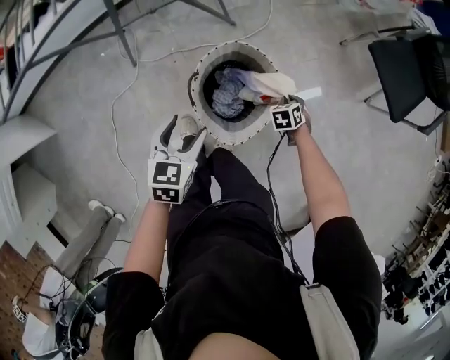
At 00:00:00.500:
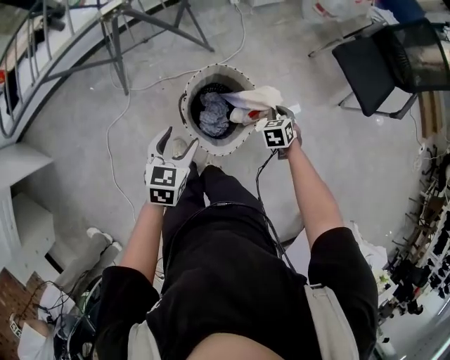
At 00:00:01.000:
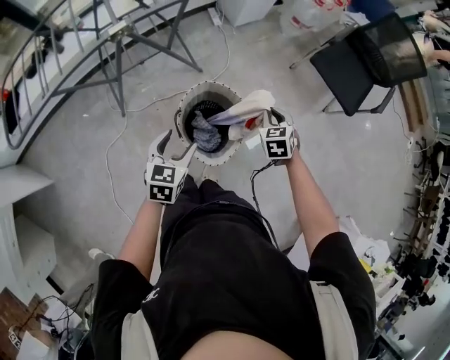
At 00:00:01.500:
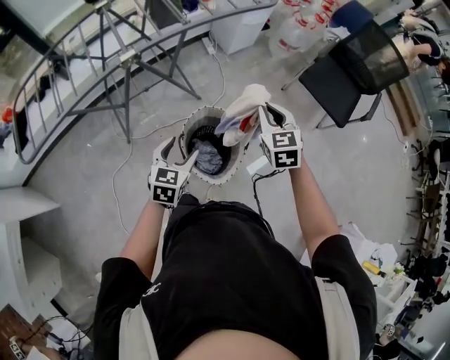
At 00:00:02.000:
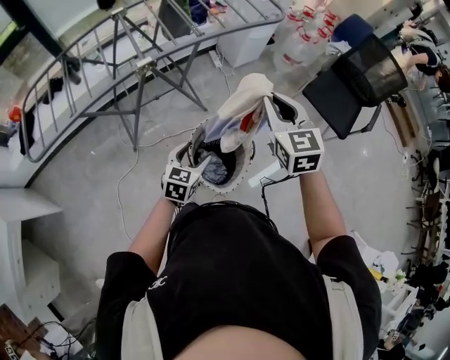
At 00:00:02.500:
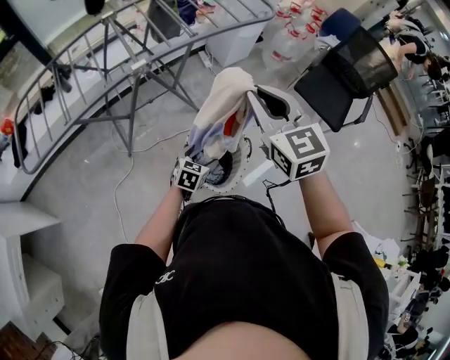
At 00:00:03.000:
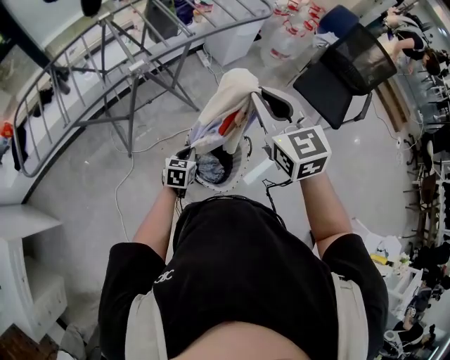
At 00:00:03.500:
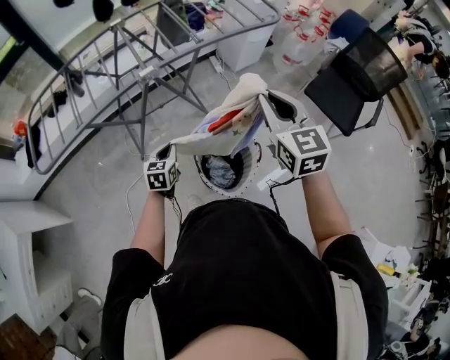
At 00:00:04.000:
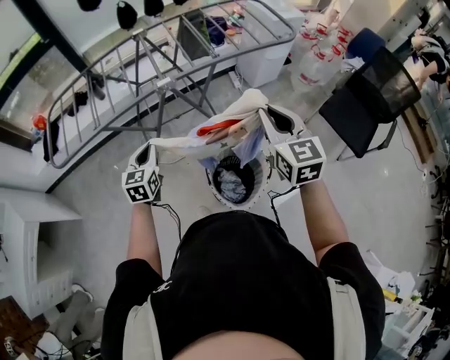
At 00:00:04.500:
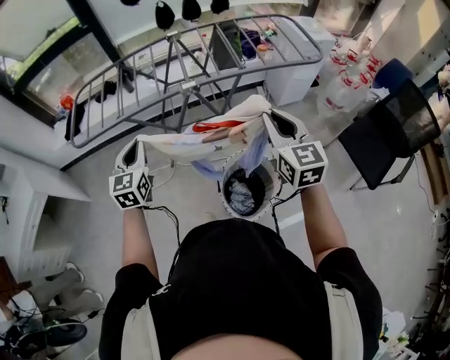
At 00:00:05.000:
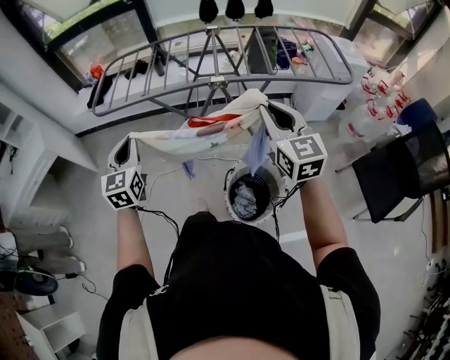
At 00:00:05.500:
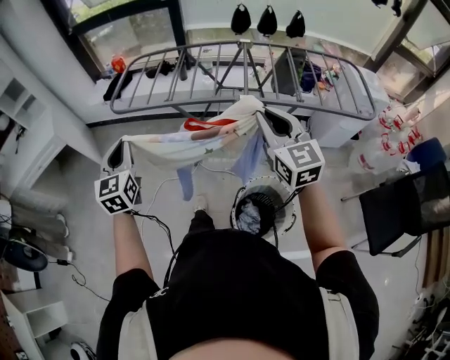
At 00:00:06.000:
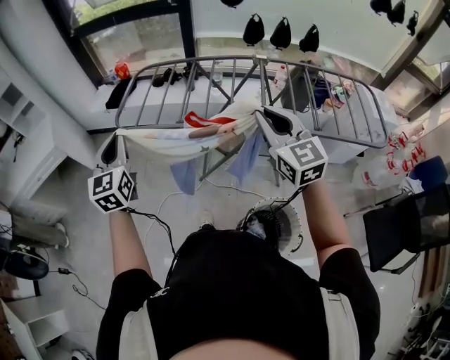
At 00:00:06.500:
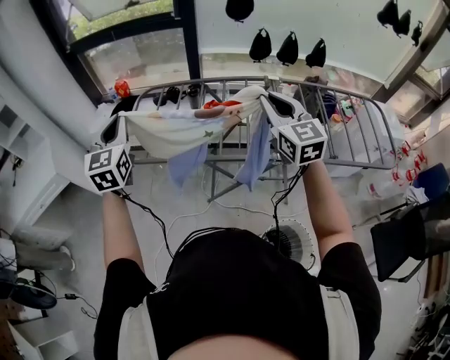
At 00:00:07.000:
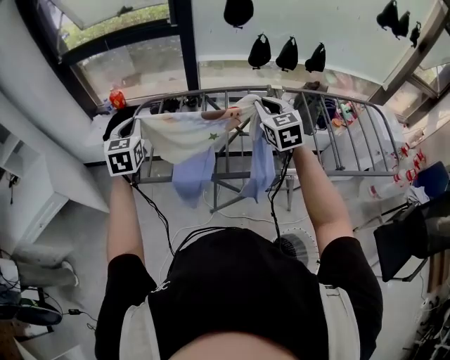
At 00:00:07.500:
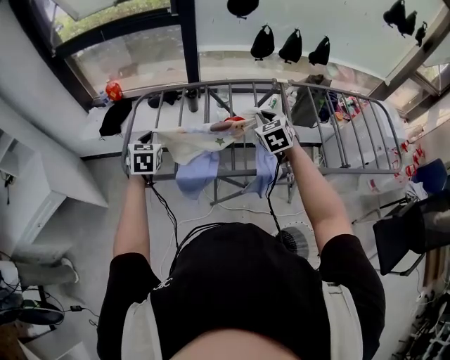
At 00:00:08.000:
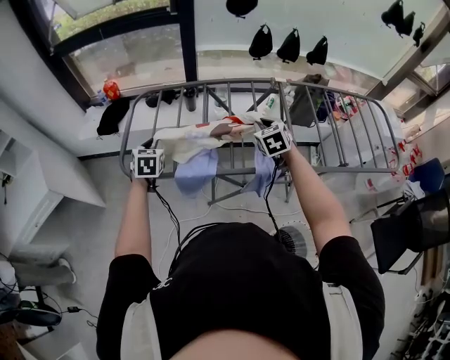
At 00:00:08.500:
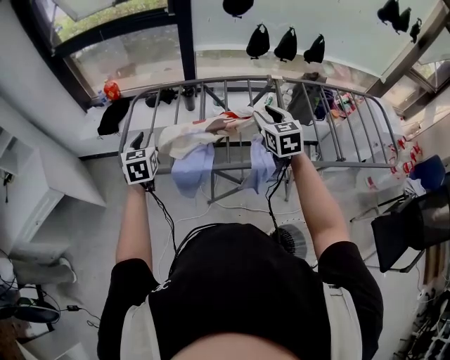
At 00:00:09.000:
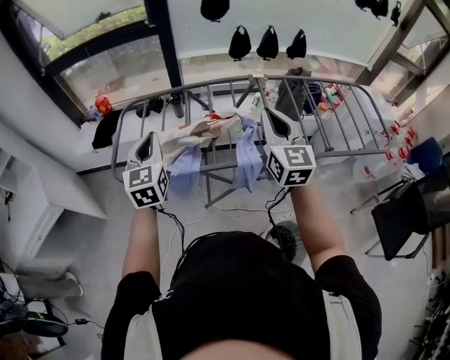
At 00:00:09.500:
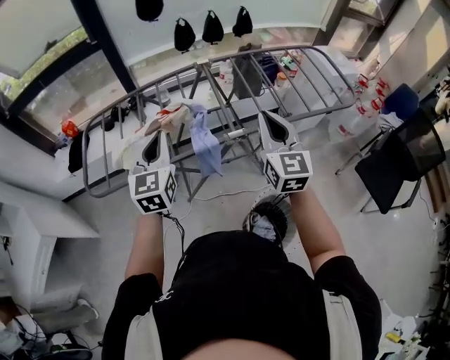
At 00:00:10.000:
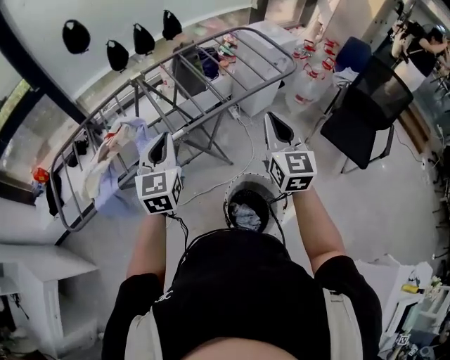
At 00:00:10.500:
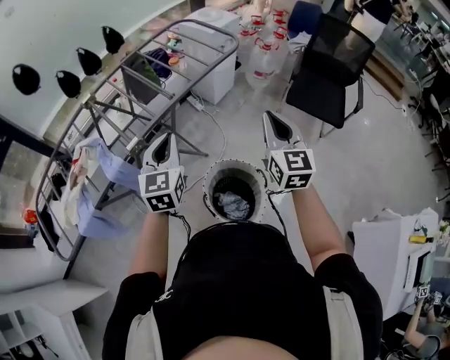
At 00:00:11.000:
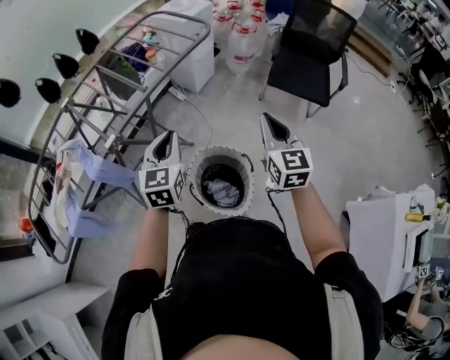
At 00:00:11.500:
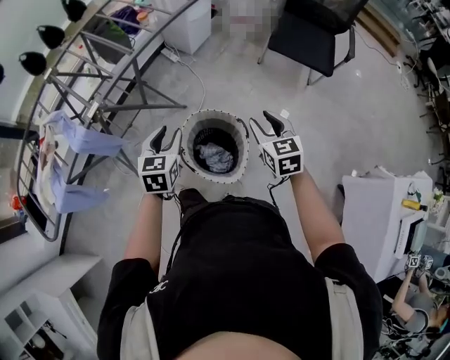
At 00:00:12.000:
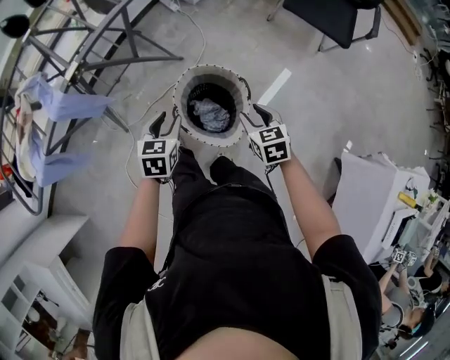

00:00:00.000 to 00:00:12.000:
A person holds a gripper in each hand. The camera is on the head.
00:00:00.000 to 00:00:02.000: The right gripper is displaced upward by some 60 cm, and points its fingers some 50 degrees further upward; the left gripper shifts about 15 cm upward, and turns by about 20 degrees.
00:00:02.000 to 00:00:04.000: The left gripper shifts approximately 20 cm to the left, rotates some 30 degrees, and closes.
00:00:04.000 to 00:00:06.000: The left gripper moves approximately 35 cm, and rotates approximately 40 degrees, while the right gripper ends up some 35 cm from where it was, and turns by some 40 degrees.
00:00:06.000 to 00:00:08.000: The two grippers go roughly 35 cm forward and downward. The right gripper points its fingers approximately 30 degrees further downward; the left gripper tips its fingers downward by about 30 degrees.
00:00:08.000 to 00:00:10.000: The two grippers travel together, about 50 cm. The left gripper swivels some 50 degrees. Meanwhile the right gripper points its fingers approximately 40 degrees further upward, and opens and closes again.
00:00:10.000 to 00:00:12.000: The left gripper travels downward and to the right by roughly 40 cm, tilts its fingers some 40 degrees downward, and opens. Meanwhile the right gripper moves downward, to the right and backward, approximately 50 cm, points its fingers approximately 50 degrees further downward, and opens up.

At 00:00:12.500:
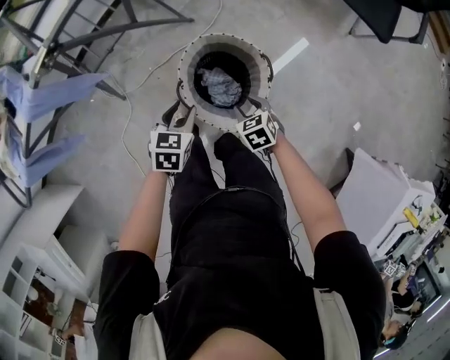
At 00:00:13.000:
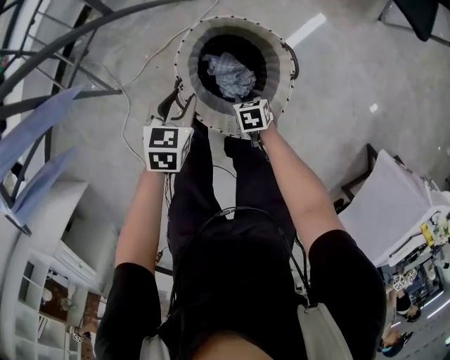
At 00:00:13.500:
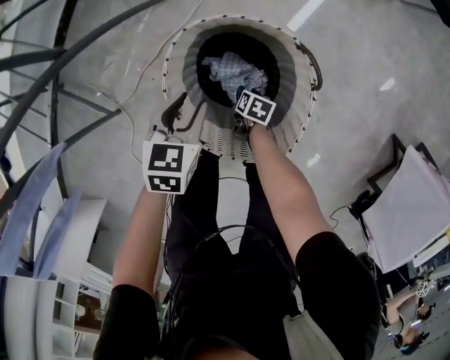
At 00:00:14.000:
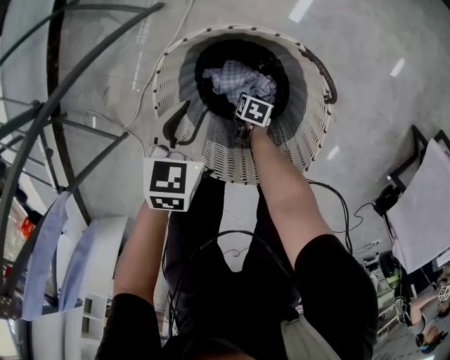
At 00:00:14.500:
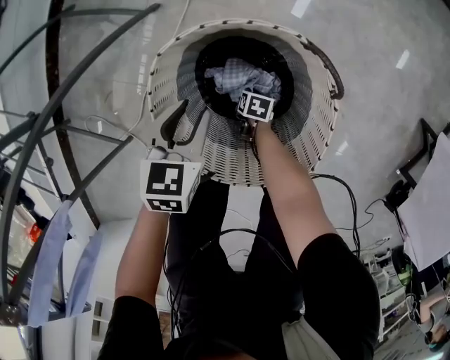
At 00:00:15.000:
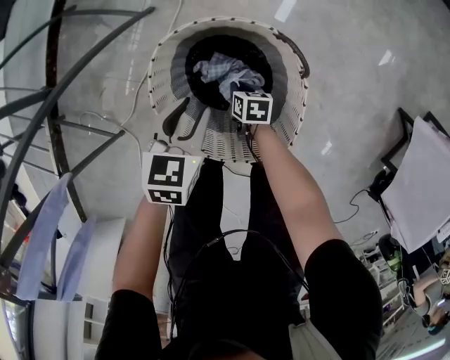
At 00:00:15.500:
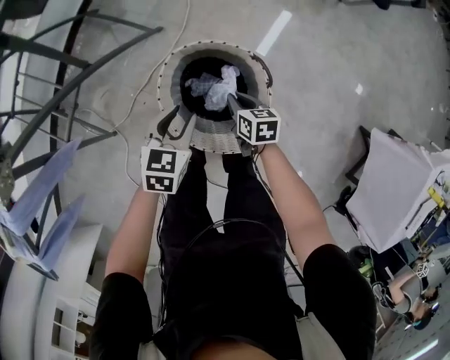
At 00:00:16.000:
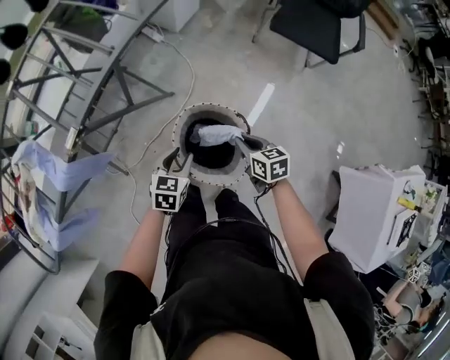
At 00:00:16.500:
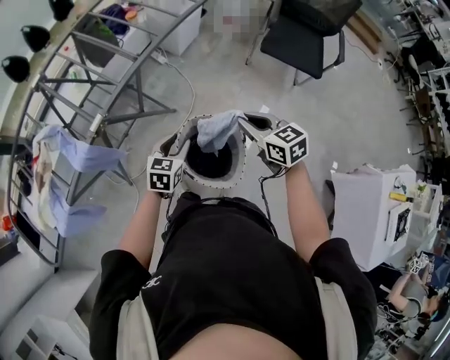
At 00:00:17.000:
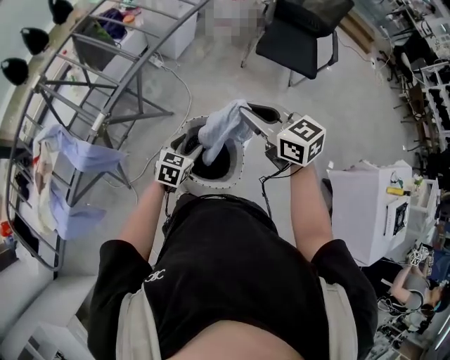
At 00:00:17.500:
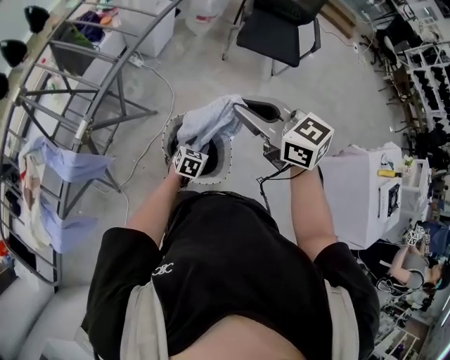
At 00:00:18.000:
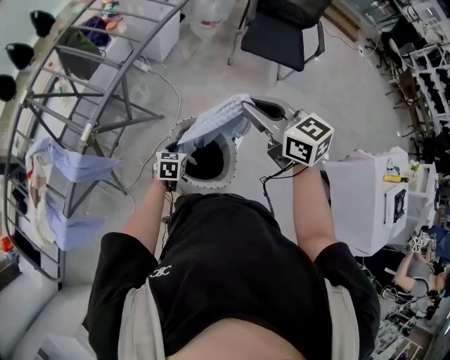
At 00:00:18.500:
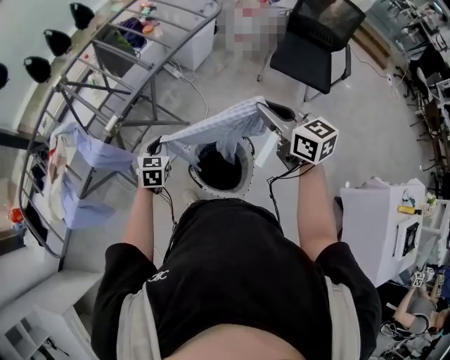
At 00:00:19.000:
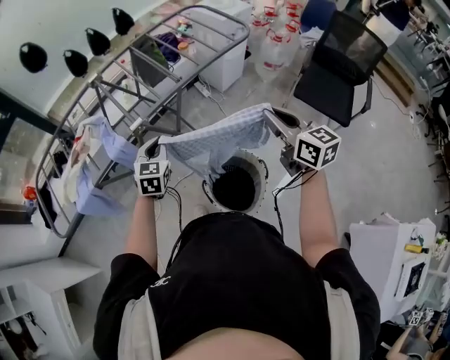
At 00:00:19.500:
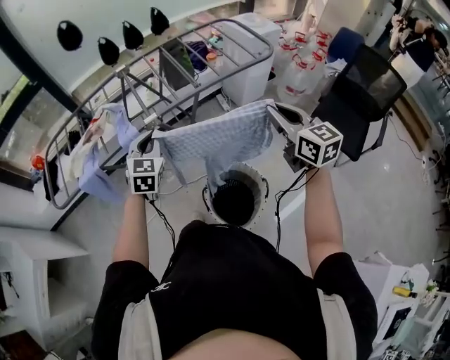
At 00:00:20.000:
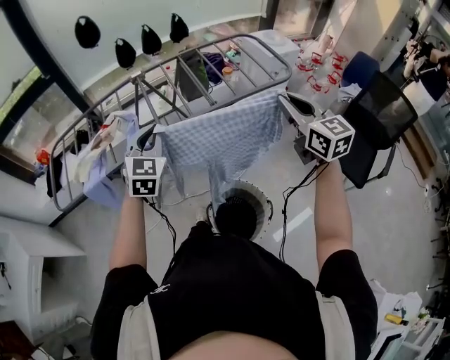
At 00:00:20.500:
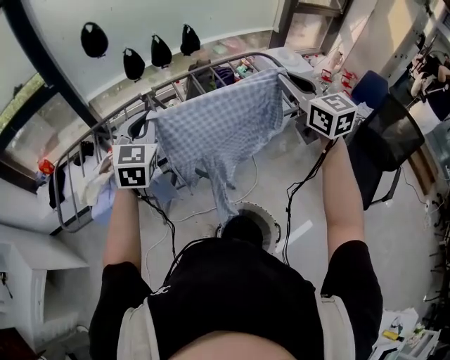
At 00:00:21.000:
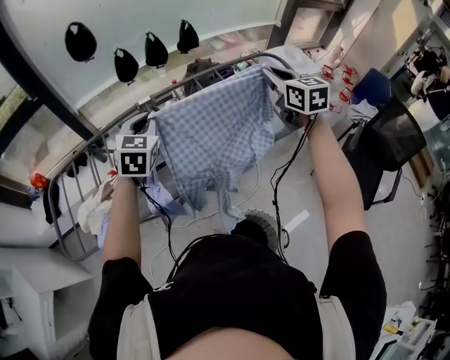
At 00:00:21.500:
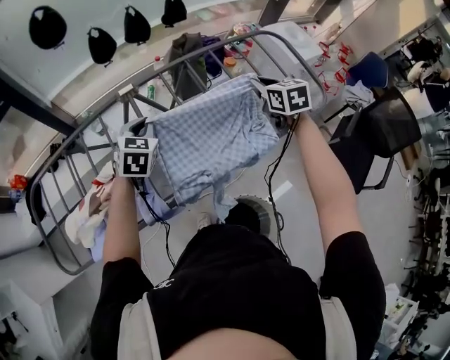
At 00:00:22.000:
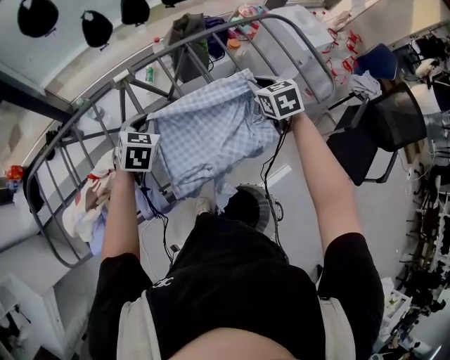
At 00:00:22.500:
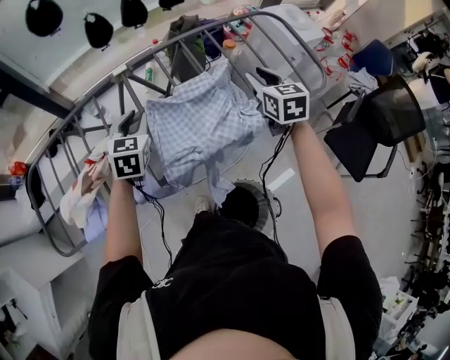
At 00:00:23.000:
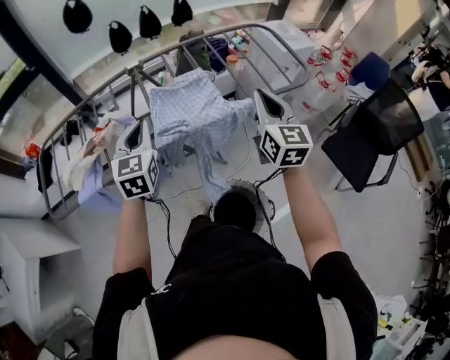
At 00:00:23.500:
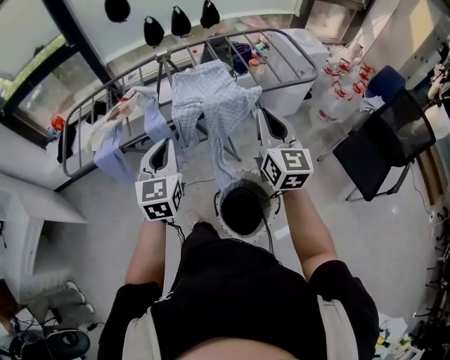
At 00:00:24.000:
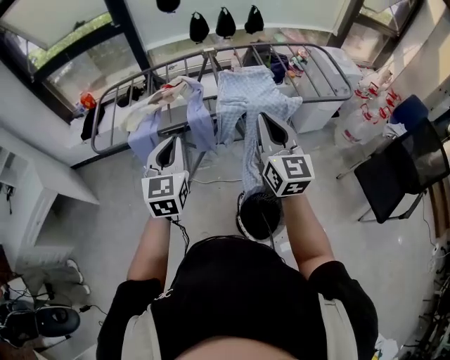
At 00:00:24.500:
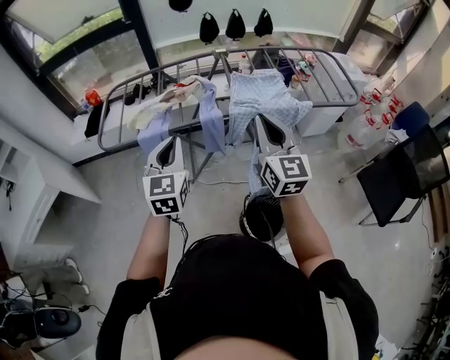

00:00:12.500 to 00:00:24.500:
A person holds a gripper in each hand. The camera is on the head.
00:00:12.500 to 00:00:14.500: The left gripper shifts some 25 cm downward, and rotates approximately 20 degrees. The right gripper travels downward by roughly 50 cm, rolls clockwise, seen from behind, by roughly 70 degrees, and closes its fingers.
00:00:14.500 to 00:00:16.500: The right gripper is displaced upward by some 80 cm, and angles its fingers upward, by about 40 degrees. Meanwhile the left gripper goes roughly 40 cm upward, and swivels roughly 20 degrees.
00:00:16.500 to 00:00:18.500: The right gripper heads upward, covering about 10 cm; the left gripper shifts about 10 cm to the left, and closes.
00:00:18.500 to 00:00:20.500: The left gripper heads upward and forward, covering roughly 40 cm, and changes its angle by some 40 degrees; the right gripper is displaced forward and upward by about 35 cm, and rotates roughly 30 degrees.
00:00:20.500 to 00:00:22.500: The two grippers go roughly 30 cm downward and forward. The left gripper rotates approximately 20 degrees. Meanwhile the right gripper swivels some 30 degrees, and opens its fingers.
00:00:22.500 to 00:00:24.500: The pair of grippers is taken backward and to the left, about 50 cm. The left gripper rotates about 30 degrees; the right gripper tips its fingers upward by approximately 30 degrees, and closes up.

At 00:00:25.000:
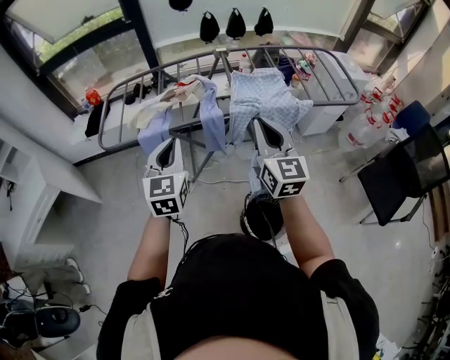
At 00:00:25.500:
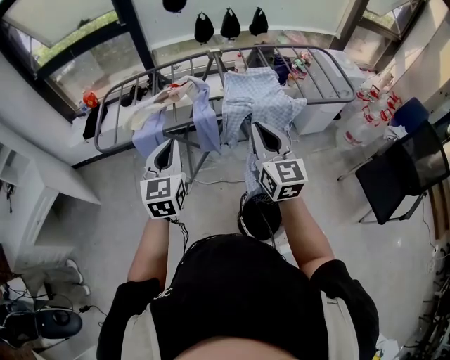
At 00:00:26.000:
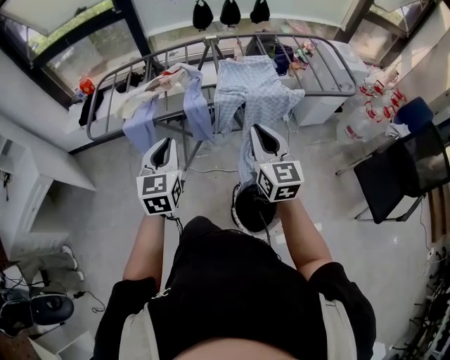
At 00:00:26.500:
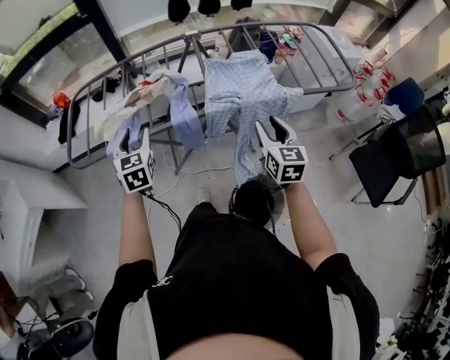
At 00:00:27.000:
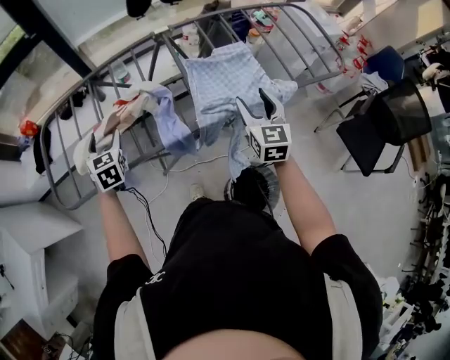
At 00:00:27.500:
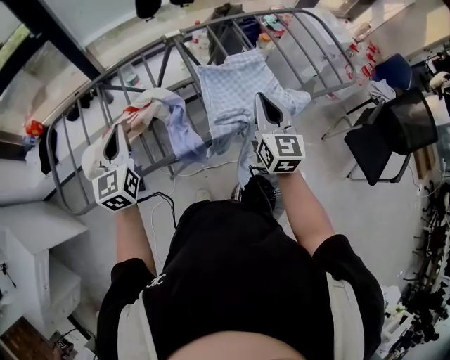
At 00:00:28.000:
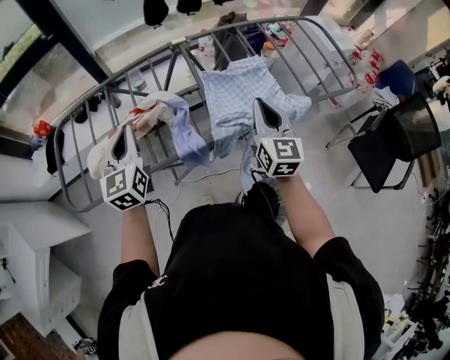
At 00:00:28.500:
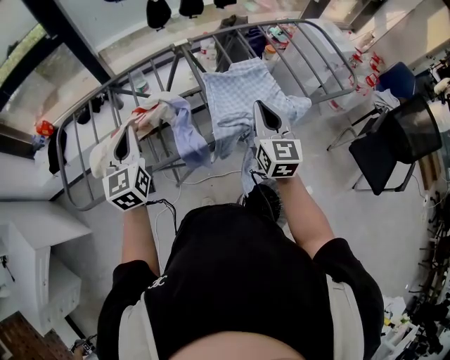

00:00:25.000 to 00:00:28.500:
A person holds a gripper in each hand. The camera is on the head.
00:00:25.000 to 00:00:27.000: The right gripper is displaced forward, downward and to the right by about 30 cm, rotates roughly 30 degrees, and opens up. Meanwhile the left gripper moves forward and downward, roughly 35 cm, rotates some 20 degrees, and opens up.
00:00:27.000 to 00:00:28.500: The left gripper is displaced upward and to the right by approximately 15 cm, swivels about 30 degrees, and closes its fingers. Meanwhile the right gripper moves approximately 5 cm, and closes.
